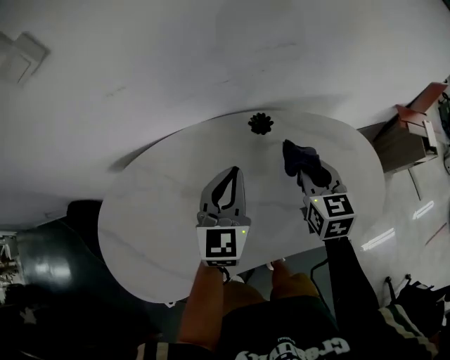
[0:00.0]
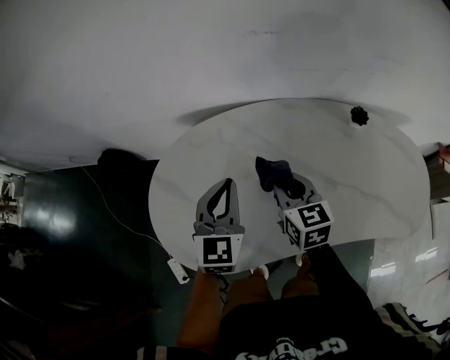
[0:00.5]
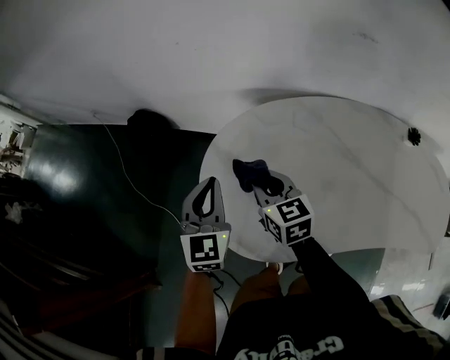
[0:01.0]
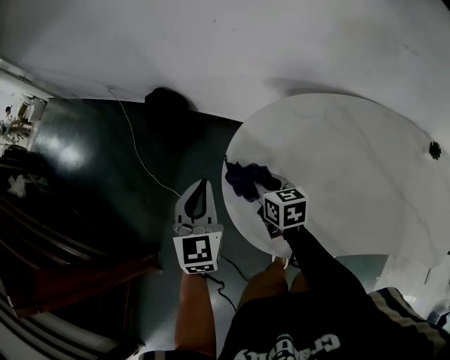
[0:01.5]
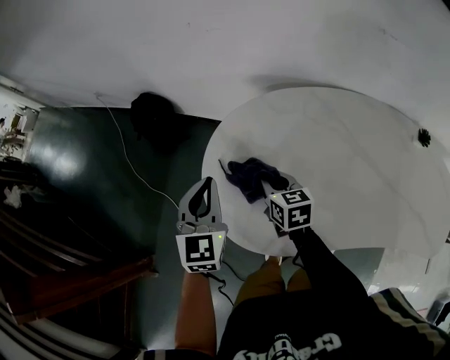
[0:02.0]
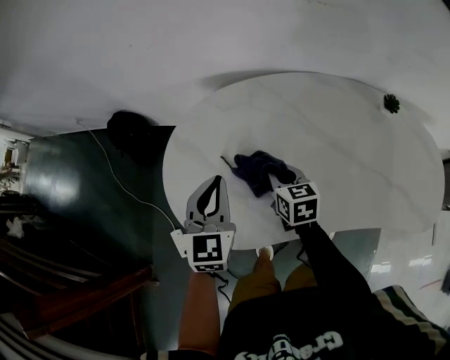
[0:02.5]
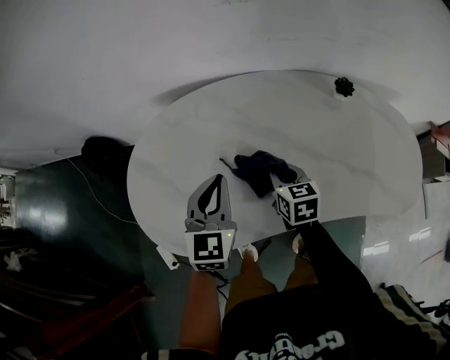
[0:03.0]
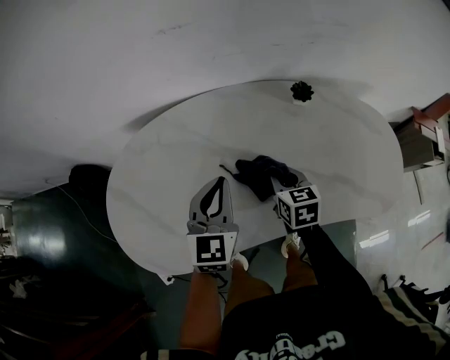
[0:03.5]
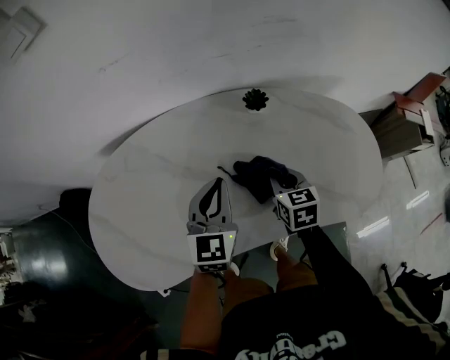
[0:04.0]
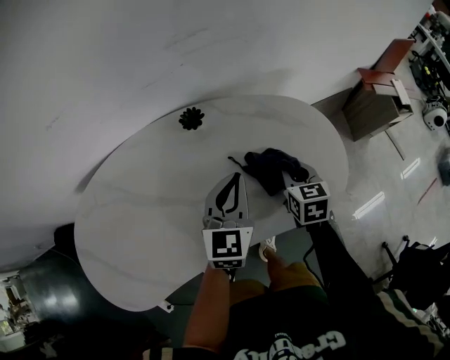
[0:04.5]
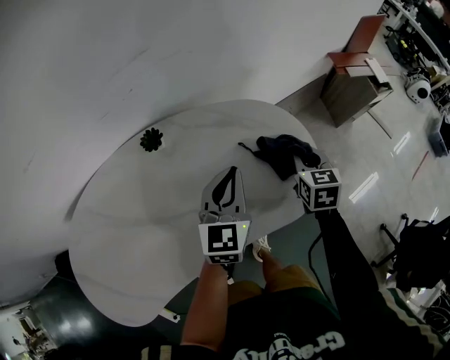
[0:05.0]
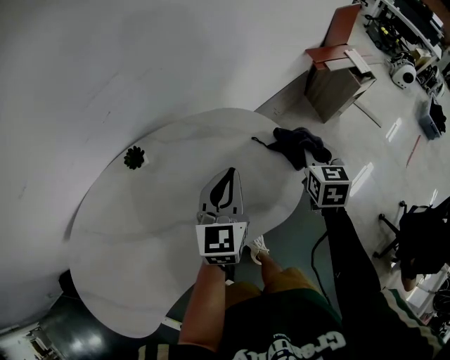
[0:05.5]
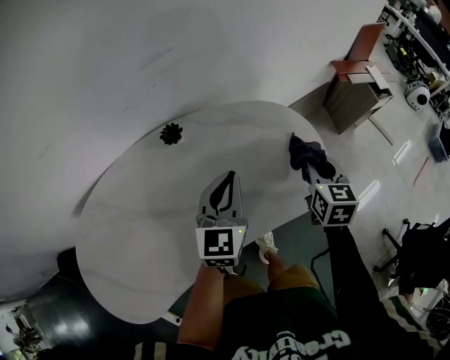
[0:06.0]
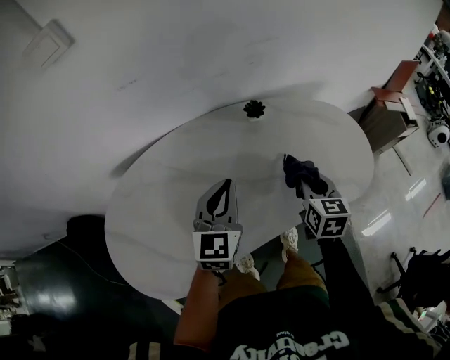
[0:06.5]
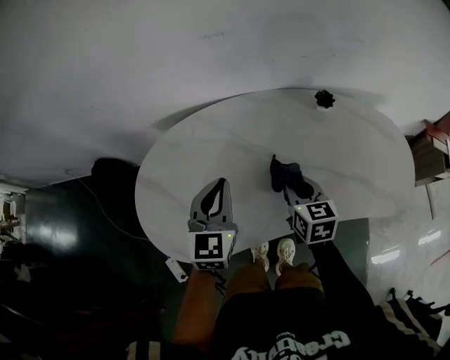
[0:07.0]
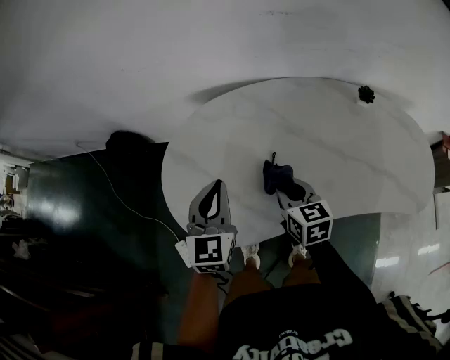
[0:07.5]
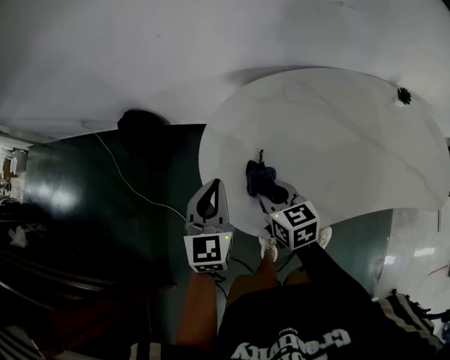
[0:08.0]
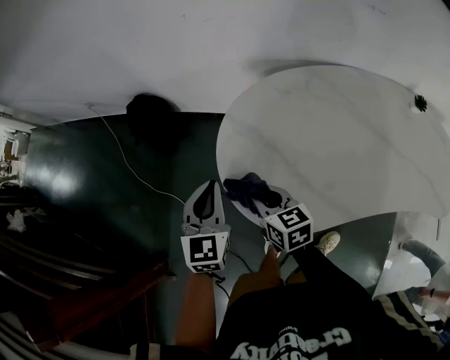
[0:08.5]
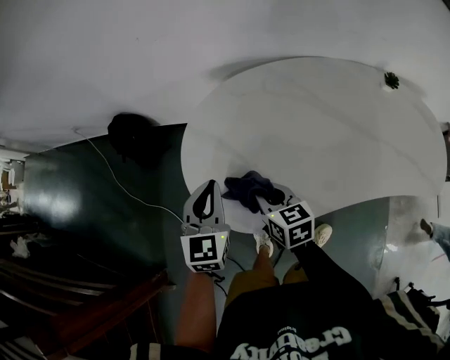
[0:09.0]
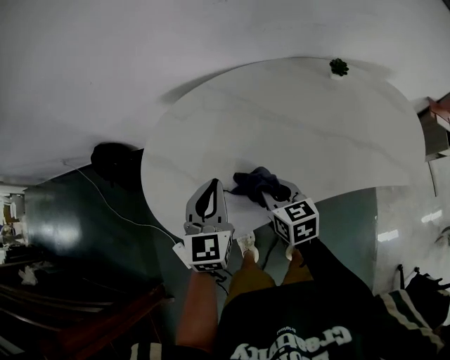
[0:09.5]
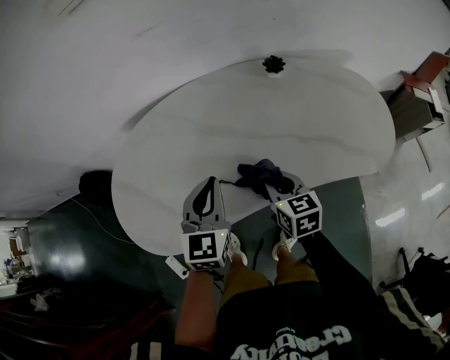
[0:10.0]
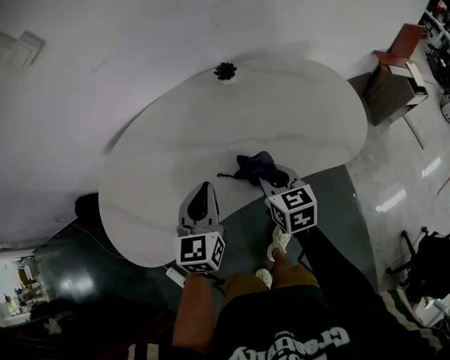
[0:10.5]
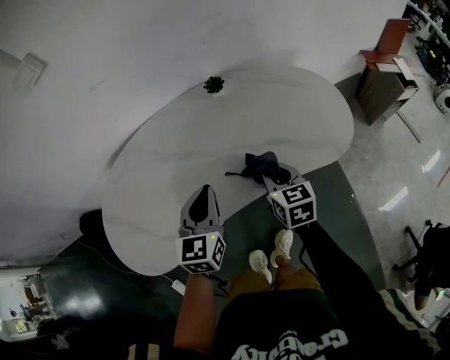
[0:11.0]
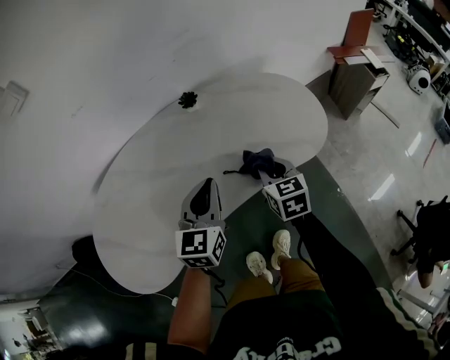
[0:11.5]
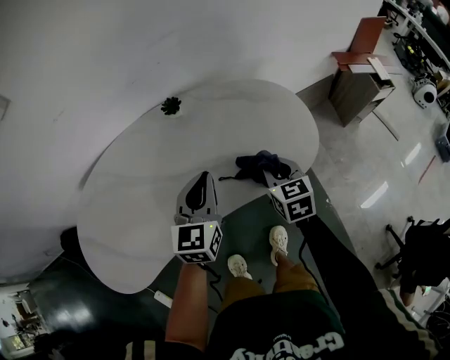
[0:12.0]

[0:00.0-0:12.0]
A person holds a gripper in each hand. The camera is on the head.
0:00.0 to 0:02.0: The two grippers travel together, approximately 70 cm. The left gripper rotates approximately 40 degrees, while the right gripper turns by some 40 degrees.
0:02.0 to 0:04.0: The two grippers travel together, approximately 60 cm. The left gripper changes its angle by approximately 30 degrees; the right gripper changes its angle by roughly 30 degrees.
0:04.0 to 0:06.0: The right gripper moves approximately 35 cm, and rotates about 30 degrees. Meanwhile the left gripper changes place by roughly 25 cm, and changes its angle by some 20 degrees.
0:06.0 to 0:08.0: The pair of grippers is taken some 80 cm. The left gripper rotates roughly 40 degrees, while the right gripper changes its angle by some 60 degrees.
0:08.0 to 0:10.0: The two grippers travel together, approximately 40 cm. The right gripper swivels roughly 20 degrees.
0:10.0 to 0:12.0: Both grippers move to the right, approximately 30 cm.

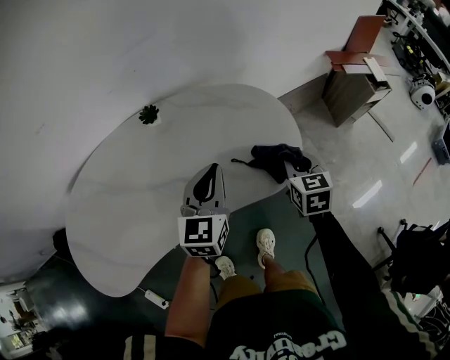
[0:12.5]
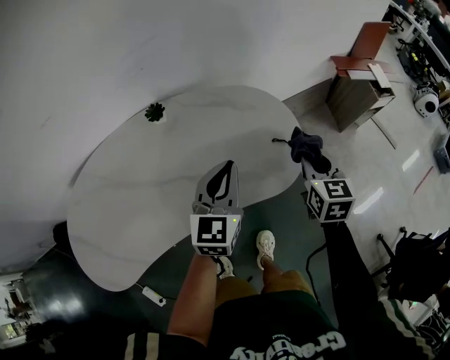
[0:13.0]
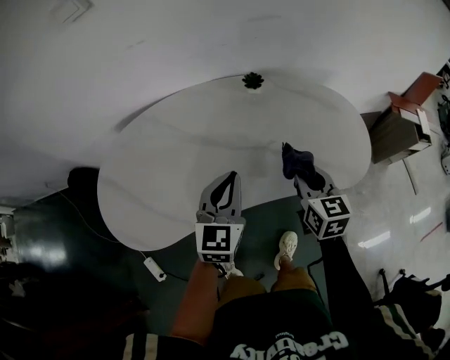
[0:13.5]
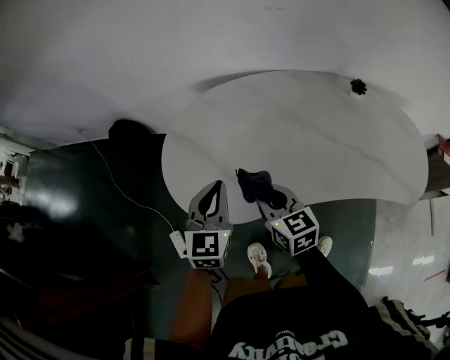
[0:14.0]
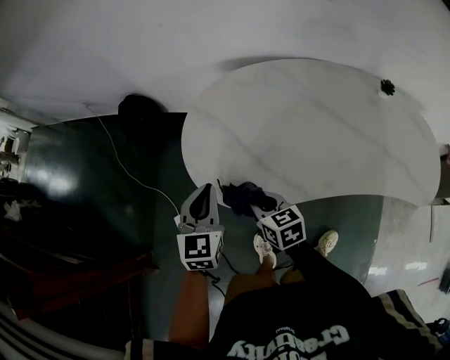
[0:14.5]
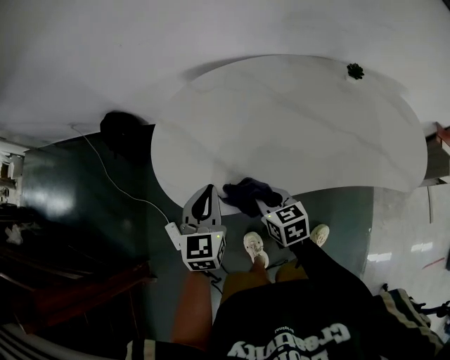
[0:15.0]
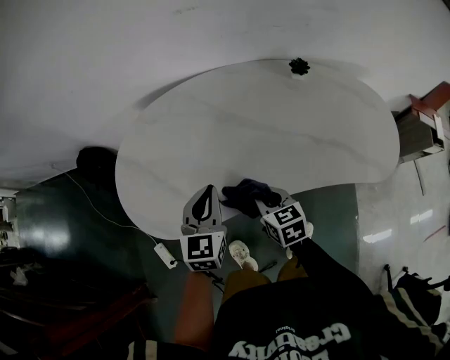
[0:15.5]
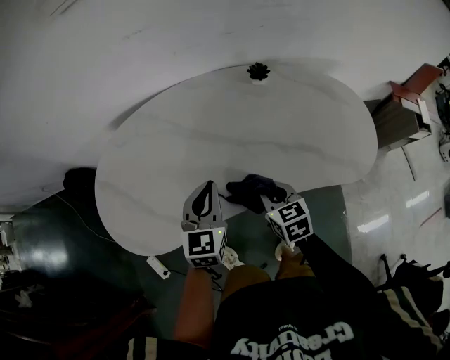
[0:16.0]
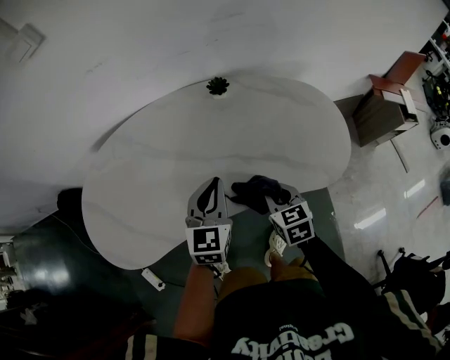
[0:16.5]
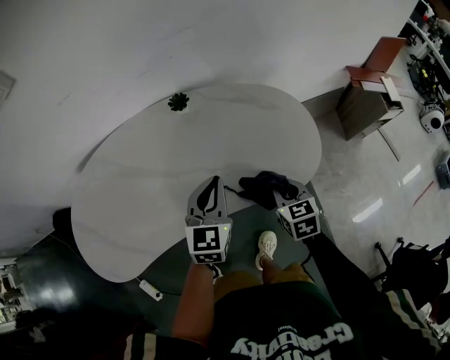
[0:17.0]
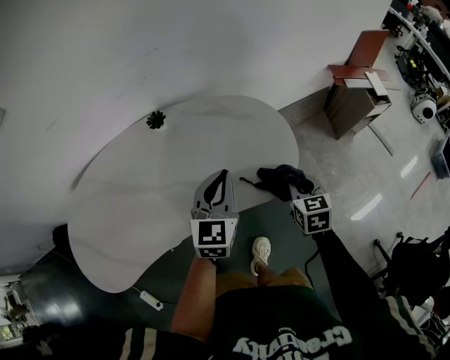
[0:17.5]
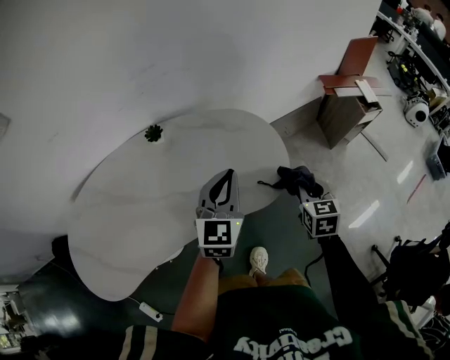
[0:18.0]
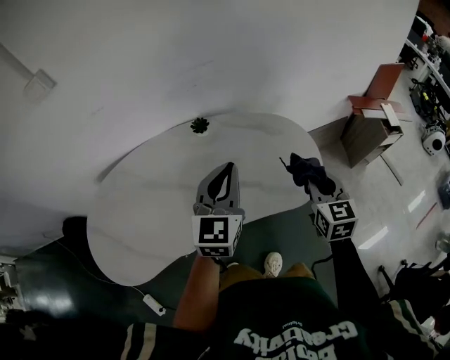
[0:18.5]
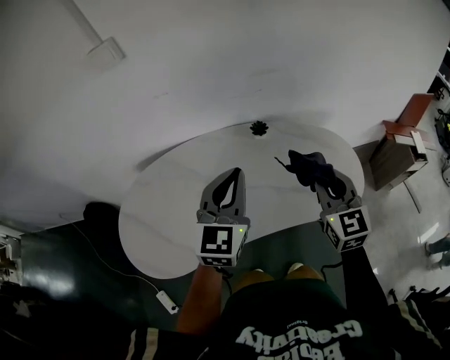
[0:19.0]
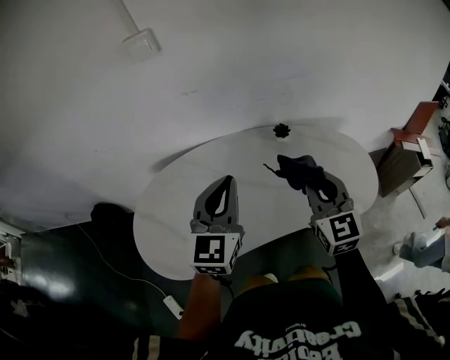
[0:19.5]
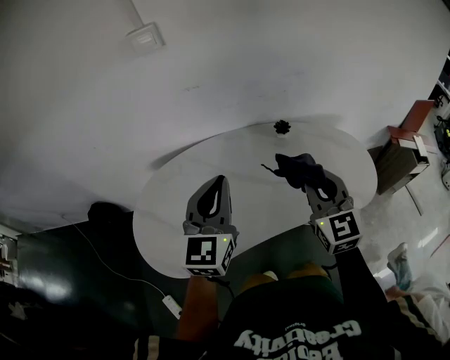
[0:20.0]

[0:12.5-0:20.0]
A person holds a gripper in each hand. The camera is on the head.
0:12.5 to 0:14.5: The pair of grippers is taken approximately 80 cm. The right gripper rotates roughly 60 degrees. The left gripper changes its angle by some 40 degrees.
0:14.5 to 0:16.5: The two grippers travel together, approximately 60 cm. The left gripper rotates about 30 degrees. The right gripper changes its angle by about 30 degrees.
0:16.5 to 0:18.0: Both grippers move to the right, about 30 cm. The right gripper changes its angle by roughly 30 degrees.
0:18.0 to 0:20.0: Both grippers are carried to the left, some 50 cm. The left gripper changes its angle by about 20 degrees. Meanwhile the right gripper heads upward, covering roughly 25 cm, and angles its fingers upward, by roughly 30 degrees.

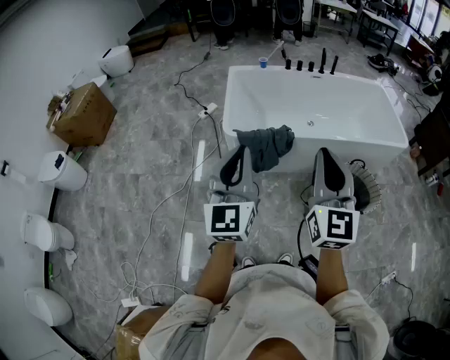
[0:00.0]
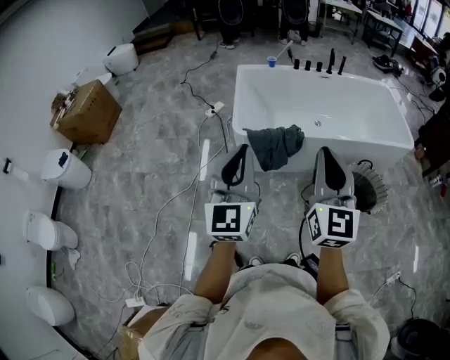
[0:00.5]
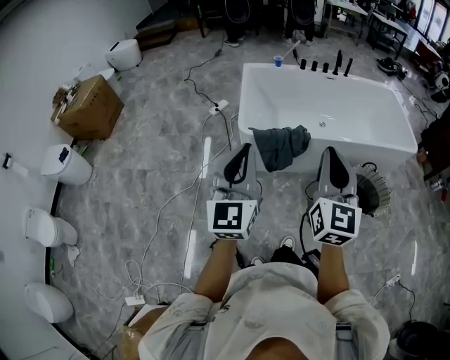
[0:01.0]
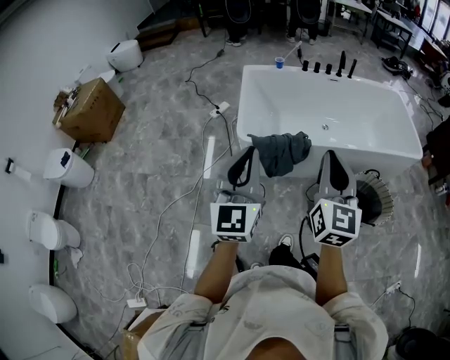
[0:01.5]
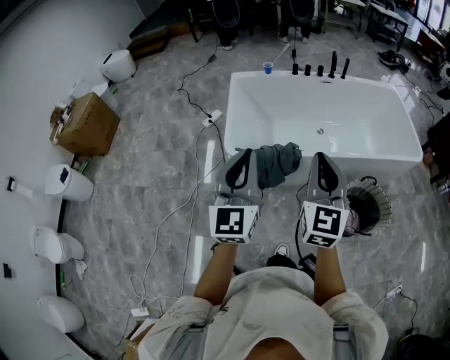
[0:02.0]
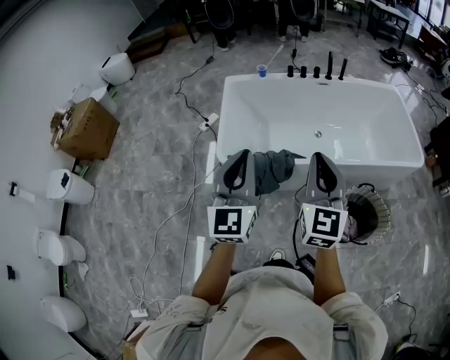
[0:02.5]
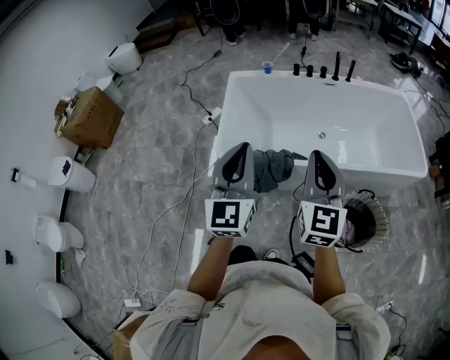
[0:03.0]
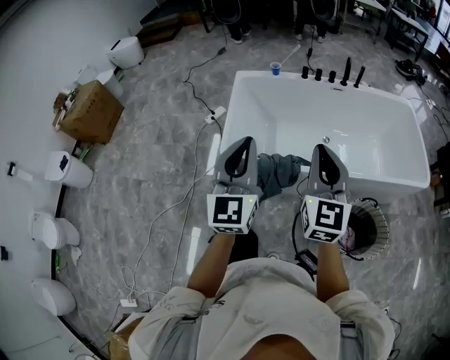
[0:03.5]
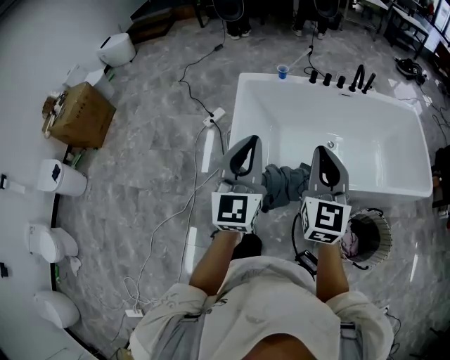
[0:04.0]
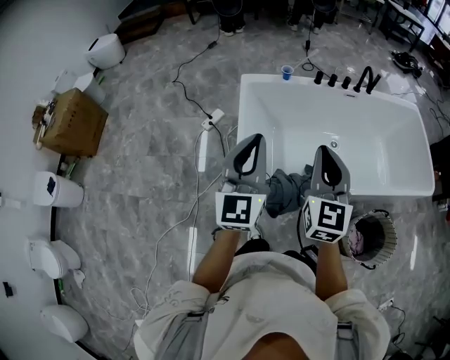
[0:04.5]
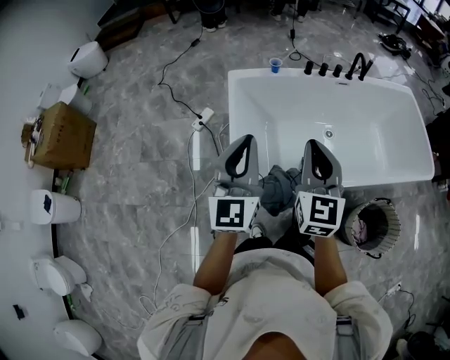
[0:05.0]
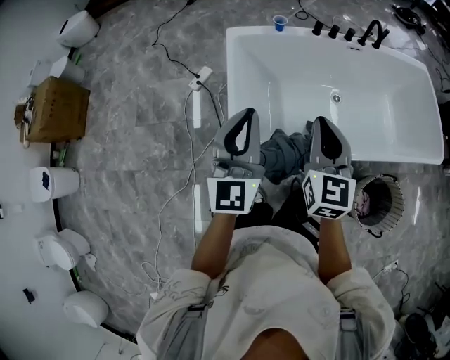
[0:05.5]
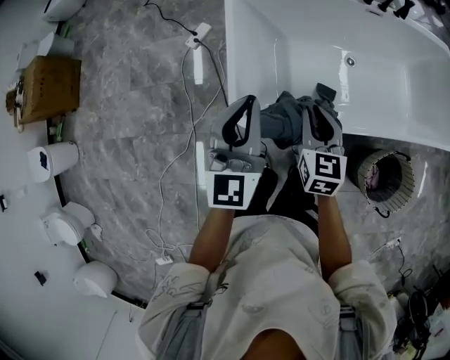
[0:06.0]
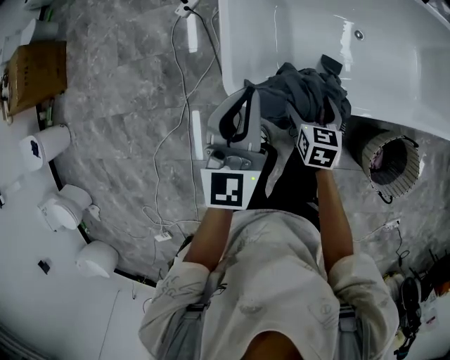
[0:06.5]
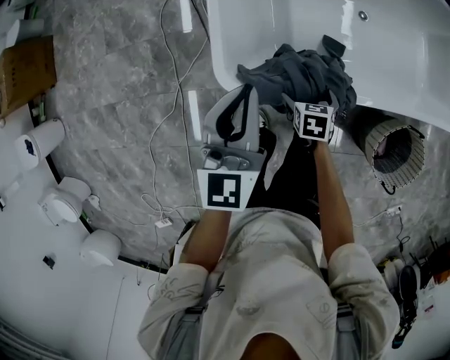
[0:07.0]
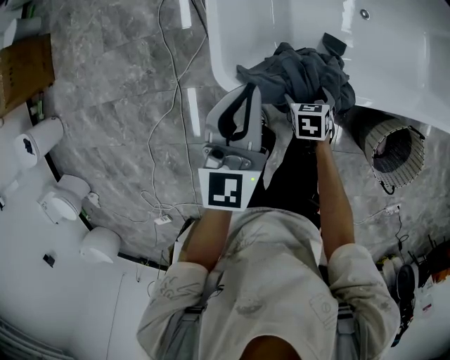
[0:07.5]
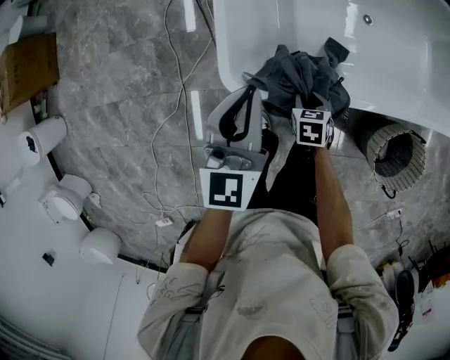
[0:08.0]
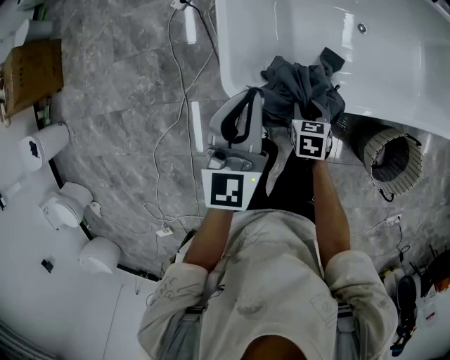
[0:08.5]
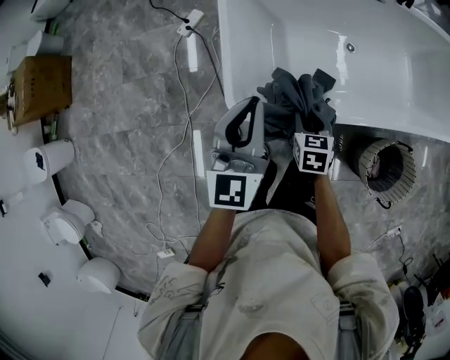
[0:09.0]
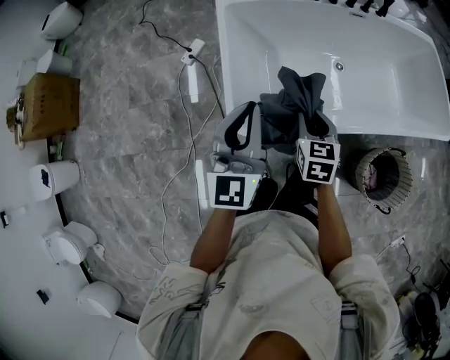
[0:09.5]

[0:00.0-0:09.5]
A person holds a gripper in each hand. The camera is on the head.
0:00.0 to 0:02.0: Both grippers travel together forward, some 20 cm.
0:02.0 to 0:04.0: Both grippers move forward, about 25 cm.
0:04.0 to 0:05.5: The grippers both shift forward, downward and to the left by about 15 cm.
0:05.5 to 0:07.5: The right gripper moves downward, about 50 cm, tilts its fingers about 60 degrees downward, and opens. Meanwhile the left gripper is displaced downward by roughly 20 cm.
0:07.5 to 0:09.5: The right gripper goes about 30 cm upward, tilts its fingers some 30 degrees upward, and closes up. The left gripper heads upward, covering some 15 cm.
